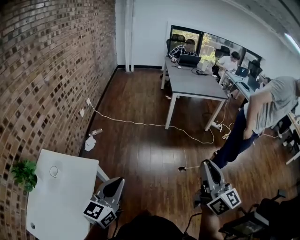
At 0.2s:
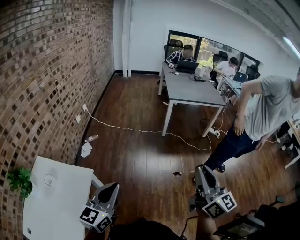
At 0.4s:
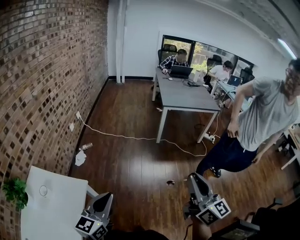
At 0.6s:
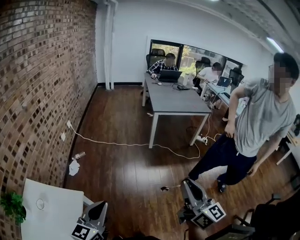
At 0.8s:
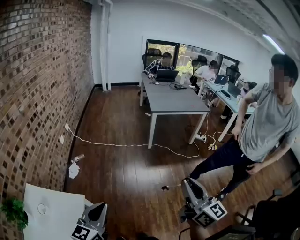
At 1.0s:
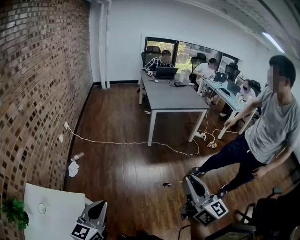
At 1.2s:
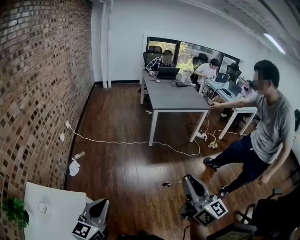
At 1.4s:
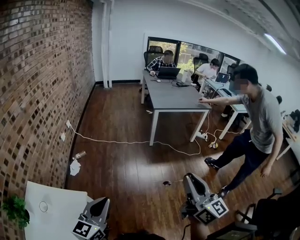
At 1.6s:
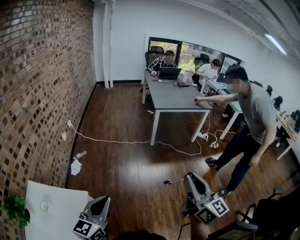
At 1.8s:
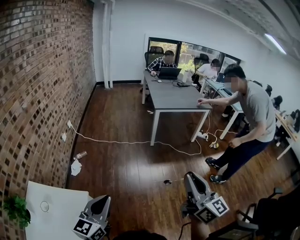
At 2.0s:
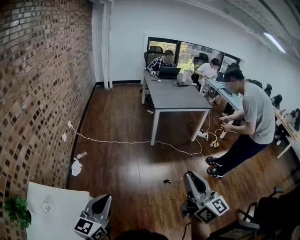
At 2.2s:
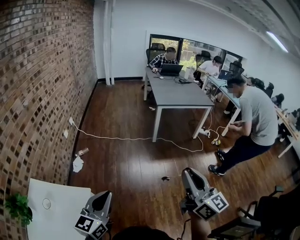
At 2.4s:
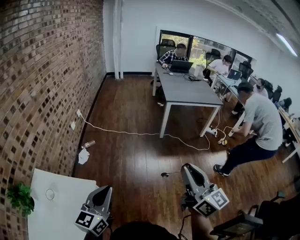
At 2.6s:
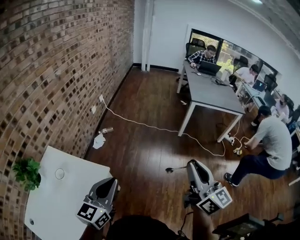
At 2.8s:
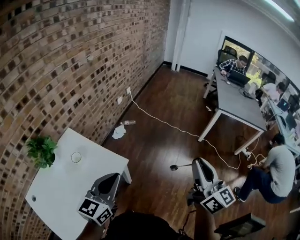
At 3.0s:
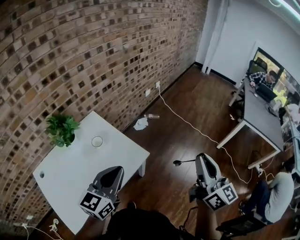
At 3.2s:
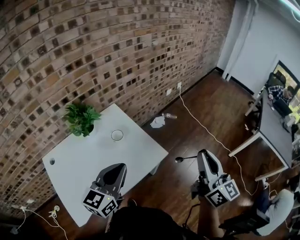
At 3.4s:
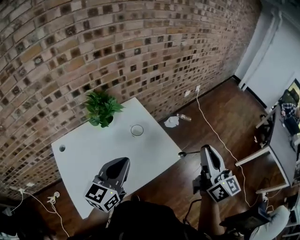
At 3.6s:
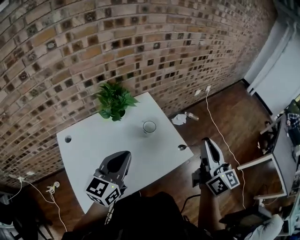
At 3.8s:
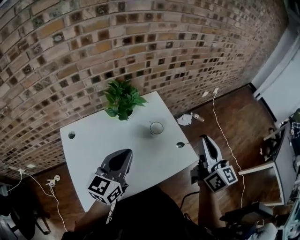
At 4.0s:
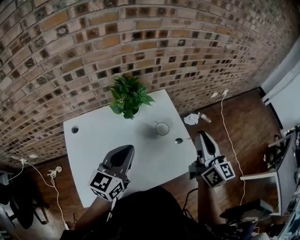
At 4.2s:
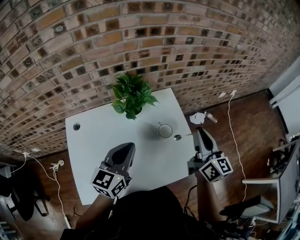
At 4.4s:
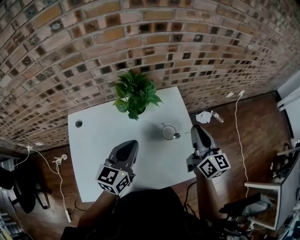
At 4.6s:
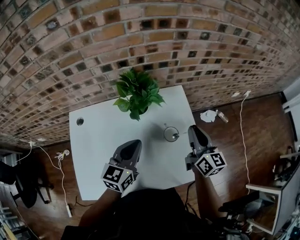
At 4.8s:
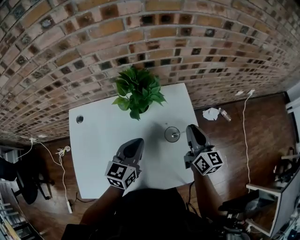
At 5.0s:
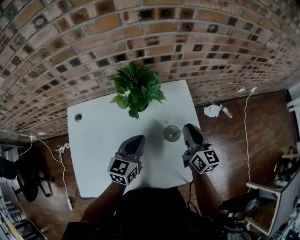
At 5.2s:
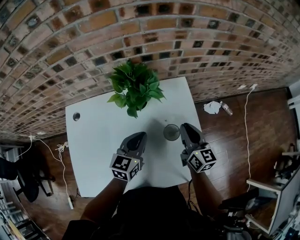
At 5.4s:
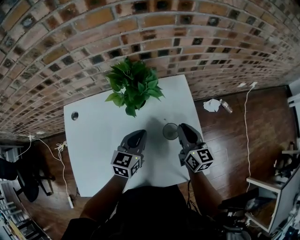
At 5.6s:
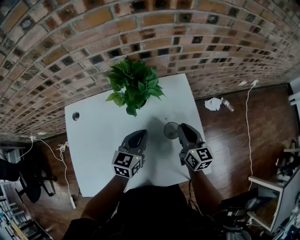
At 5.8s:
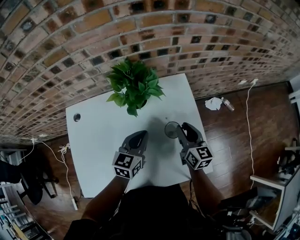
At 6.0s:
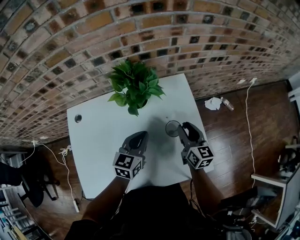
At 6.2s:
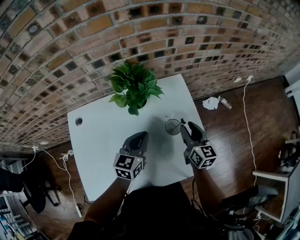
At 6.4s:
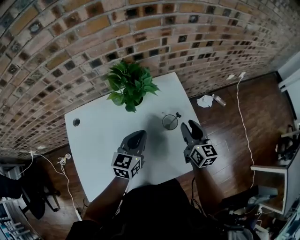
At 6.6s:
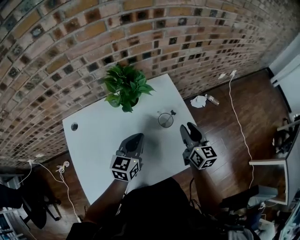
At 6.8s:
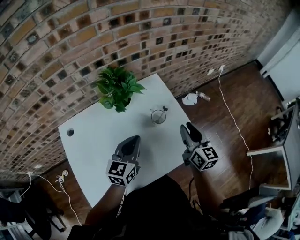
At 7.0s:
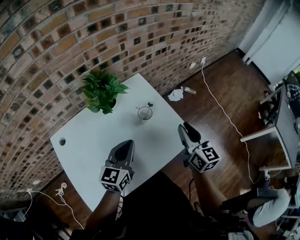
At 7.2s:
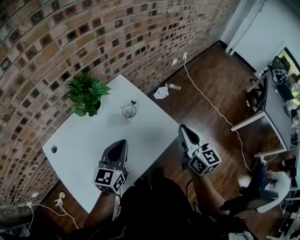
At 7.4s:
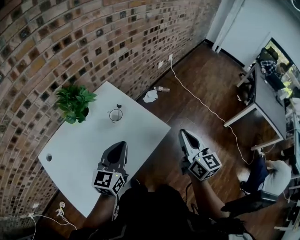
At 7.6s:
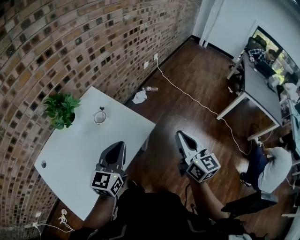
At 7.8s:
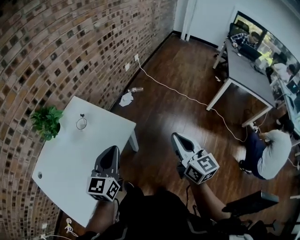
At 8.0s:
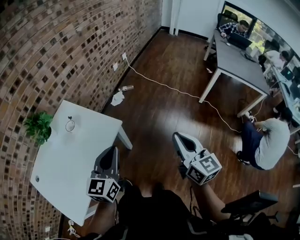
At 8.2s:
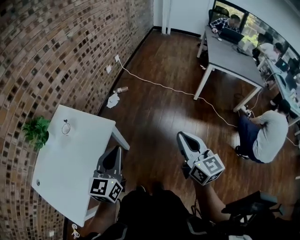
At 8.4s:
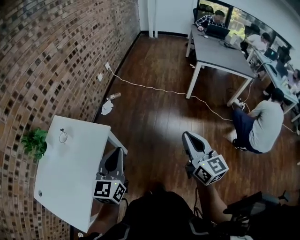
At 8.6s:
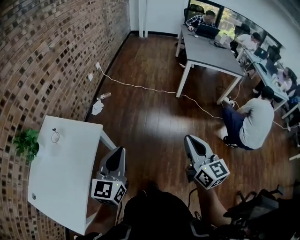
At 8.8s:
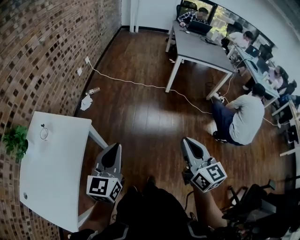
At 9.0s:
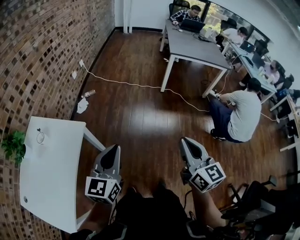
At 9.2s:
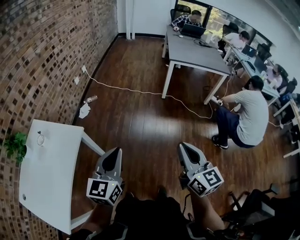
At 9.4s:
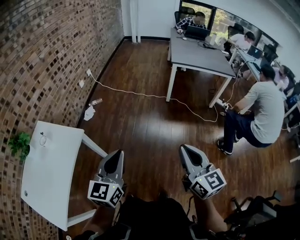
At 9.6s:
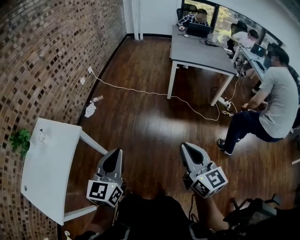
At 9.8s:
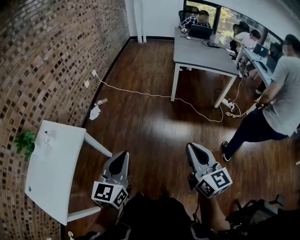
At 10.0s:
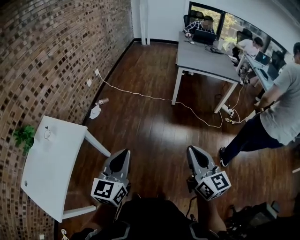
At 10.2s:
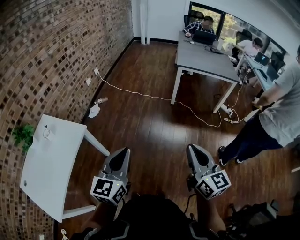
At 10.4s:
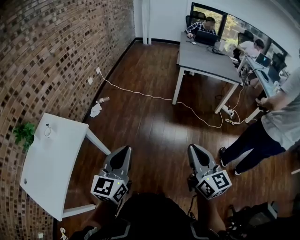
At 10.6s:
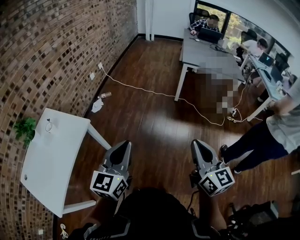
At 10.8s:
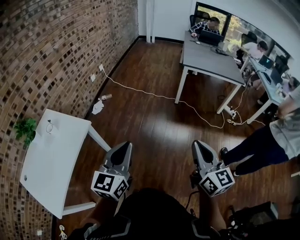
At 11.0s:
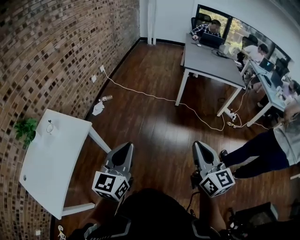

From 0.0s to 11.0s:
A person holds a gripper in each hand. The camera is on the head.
From 0.0s to 1.6s: The grippers both shift forward by approximately 10 cm.
From 1.6s to 3.2s: The left gripper shifts by roughly 30 cm, and rotates about 50 degrees. The right gripper shifts by roughly 35 cm, and swivels about 50 degrees.
From 3.2s to 4.8s: The right gripper ends up roughly 50 cm from where it was, and changes its angle by roughly 40 degrees. Meanwhile the left gripper ends up about 30 cm from where it was, and changes its angle by roughly 30 degrees.
From 4.8s to 6.2s: The right gripper goes about 5 cm downward, and opens.
From 6.2s to 7.8s: The left gripper moves about 35 cm, and changes its angle by approximately 40 degrees. Meanwhile the right gripper shifts by some 50 cm, rotates approximately 40 degrees, and closes its fingers.
From 7.8s to 9.4s: The right gripper changes place by some 40 cm, and rotates about 20 degrees. The left gripper ends up about 35 cm from where it was, and turns by about 20 degrees.
From 9.4s to 11.0s: The grippers stay close to where they were, moving slightly.

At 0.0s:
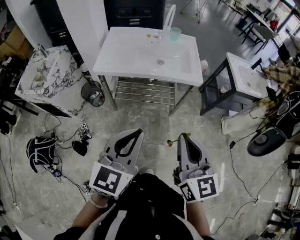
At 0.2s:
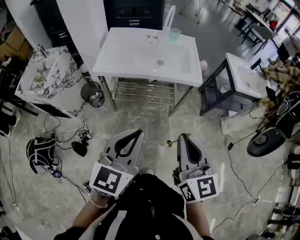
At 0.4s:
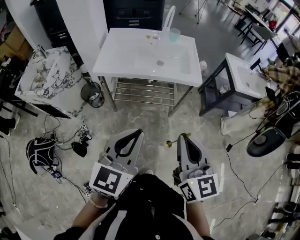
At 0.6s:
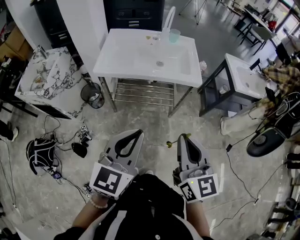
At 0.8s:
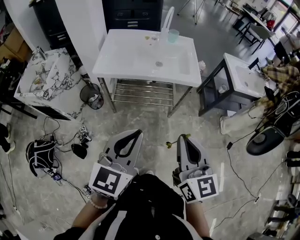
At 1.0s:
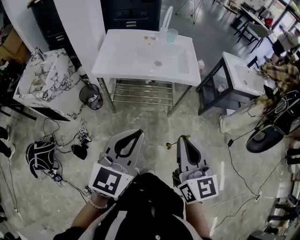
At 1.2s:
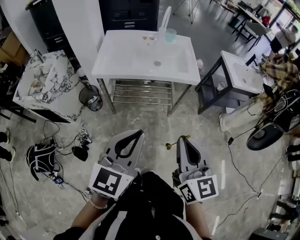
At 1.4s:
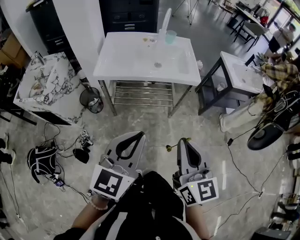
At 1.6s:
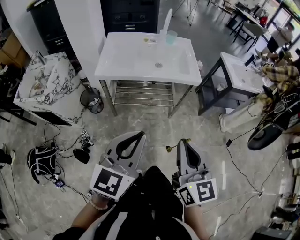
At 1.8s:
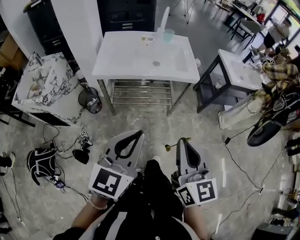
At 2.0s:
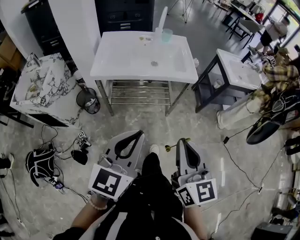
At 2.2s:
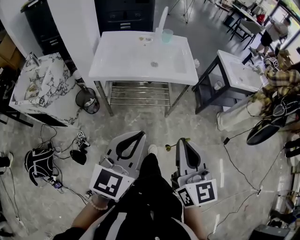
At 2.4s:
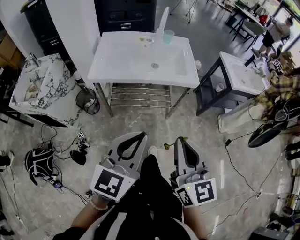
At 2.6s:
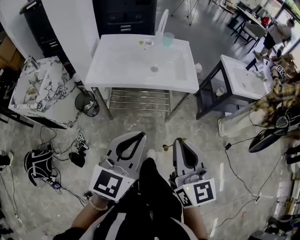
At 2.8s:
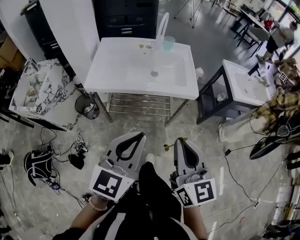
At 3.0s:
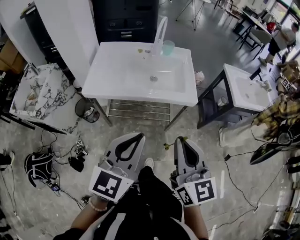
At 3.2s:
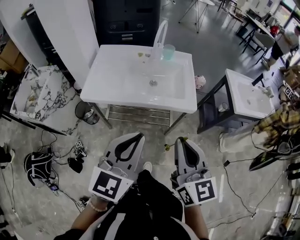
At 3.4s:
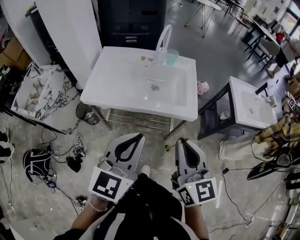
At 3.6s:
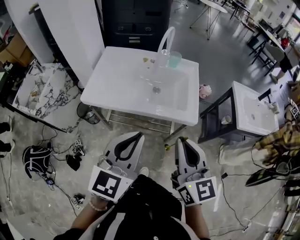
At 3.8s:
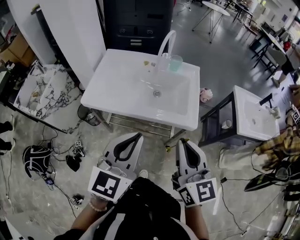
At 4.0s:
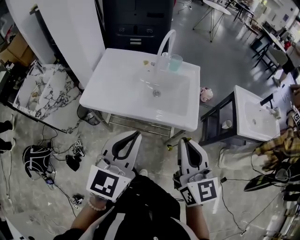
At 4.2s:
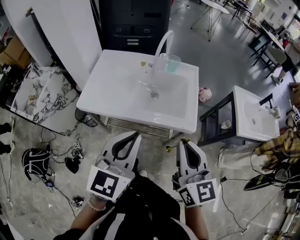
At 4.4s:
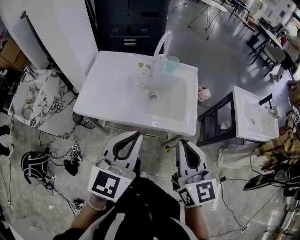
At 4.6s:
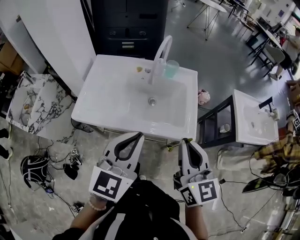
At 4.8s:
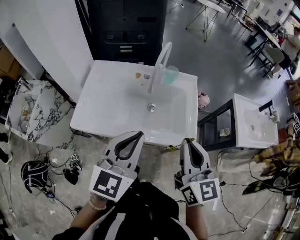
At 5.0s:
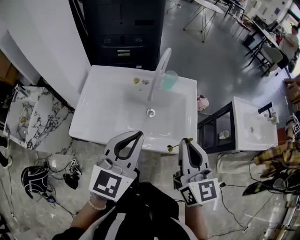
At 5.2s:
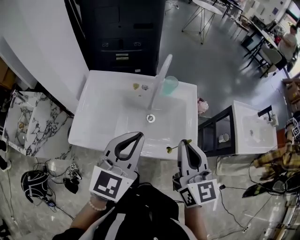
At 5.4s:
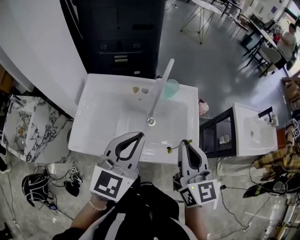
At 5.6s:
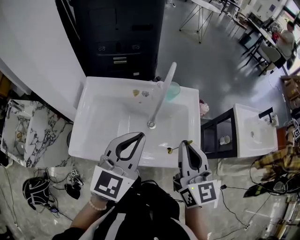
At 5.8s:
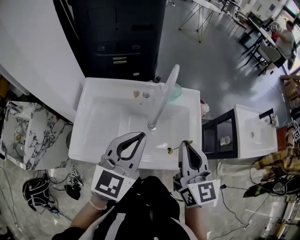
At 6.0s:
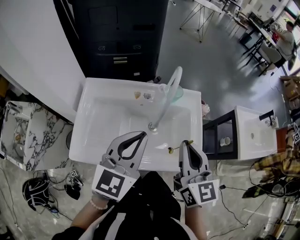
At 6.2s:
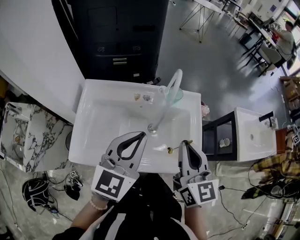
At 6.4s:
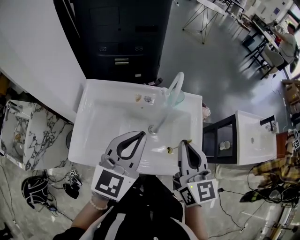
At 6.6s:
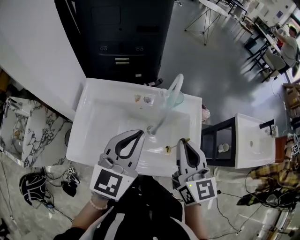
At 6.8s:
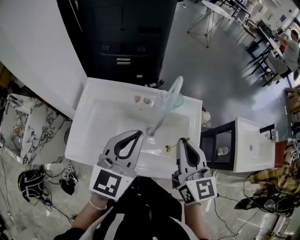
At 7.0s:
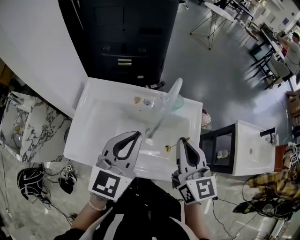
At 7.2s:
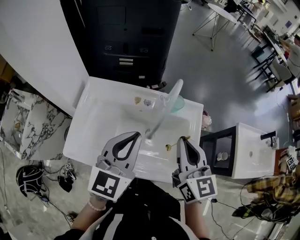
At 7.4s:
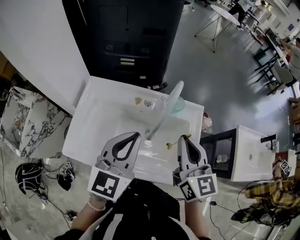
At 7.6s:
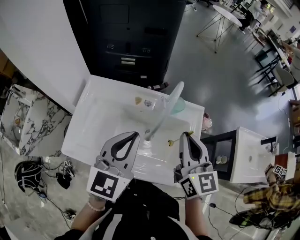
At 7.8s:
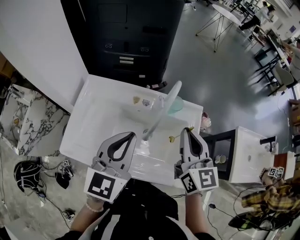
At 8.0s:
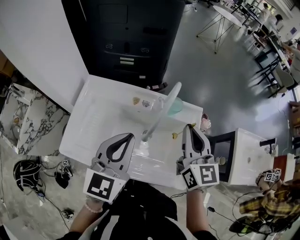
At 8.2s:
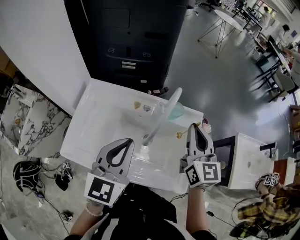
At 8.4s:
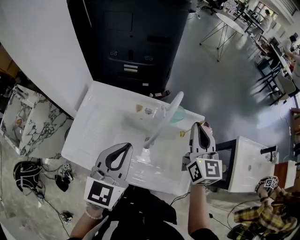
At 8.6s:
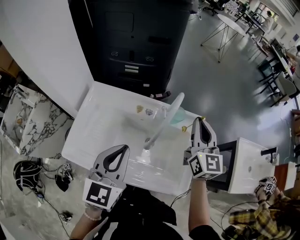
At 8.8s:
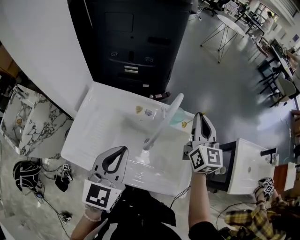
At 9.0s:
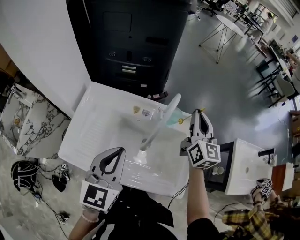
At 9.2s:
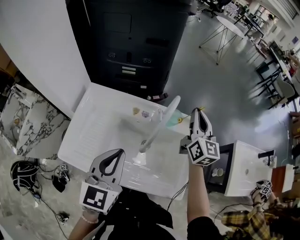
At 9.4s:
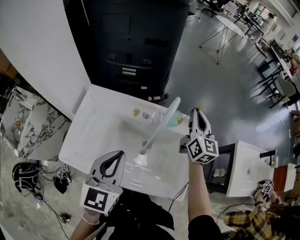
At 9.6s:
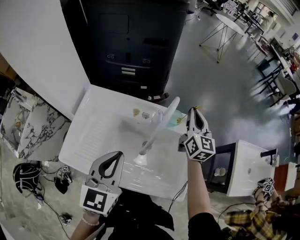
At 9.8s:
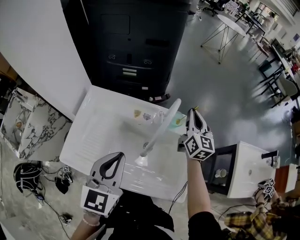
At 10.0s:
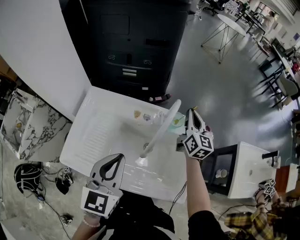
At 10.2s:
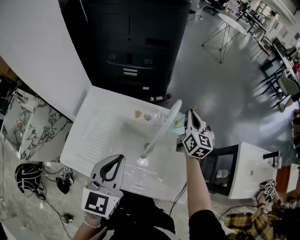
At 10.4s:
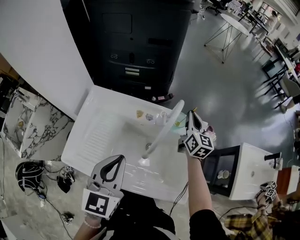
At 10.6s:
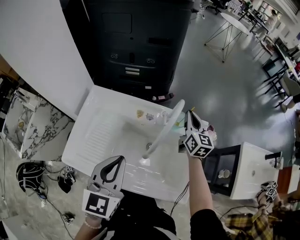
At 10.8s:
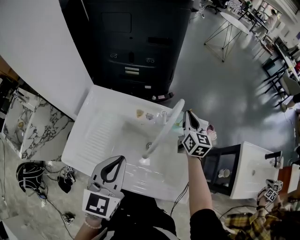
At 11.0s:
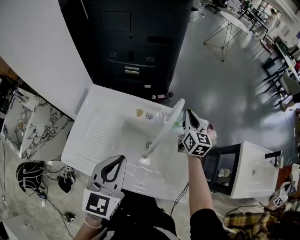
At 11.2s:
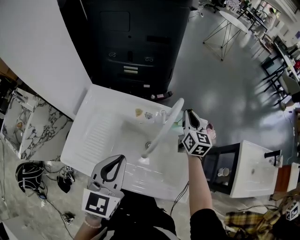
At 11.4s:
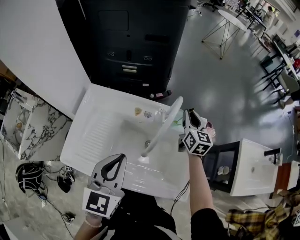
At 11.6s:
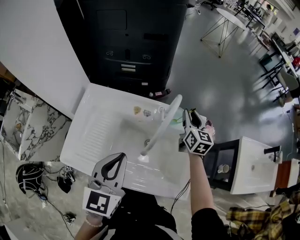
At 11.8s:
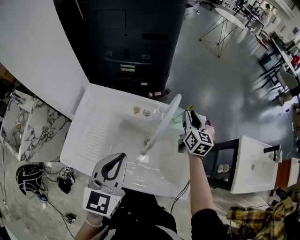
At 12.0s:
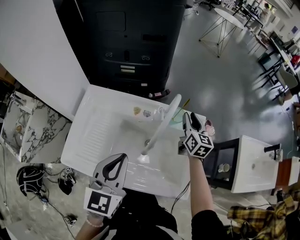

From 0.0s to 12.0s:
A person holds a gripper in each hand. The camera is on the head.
From 0.0s to 1.6s: The right gripper ends up roughly 5 cm from where it was.
From 1.6s to 3.0s: The right gripper goes some 15 cm forward. The left gripper heads forward and to the right, covering about 15 cm.
From 3.0s to 4.4s: Both grippers travel together forward, about 15 cm.
From 4.4s to 6.0s: The two grippers go about 20 cm forward.
From 6.0s to 7.6s: The right gripper moves forward, some 10 cm.
From 7.6s to 9.0s: The right gripper shifts about 15 cm forward and to the right.
From 9.0s to 10.4s: The right gripper moves downward and forward, roughly 15 cm.
From 10.4s to 12.0s: The right gripper opens up.

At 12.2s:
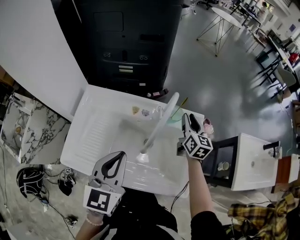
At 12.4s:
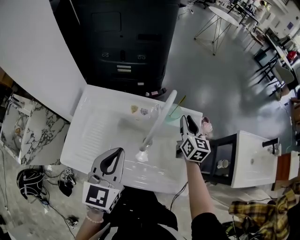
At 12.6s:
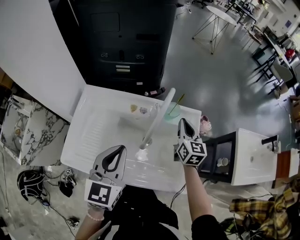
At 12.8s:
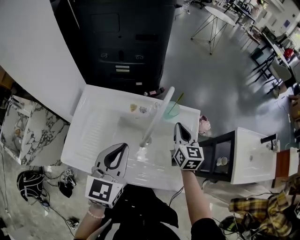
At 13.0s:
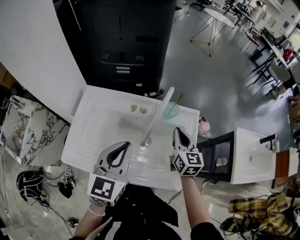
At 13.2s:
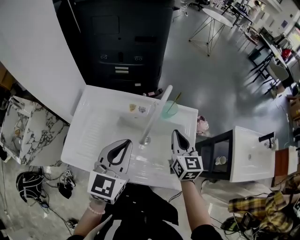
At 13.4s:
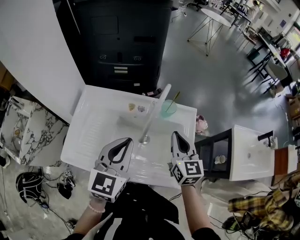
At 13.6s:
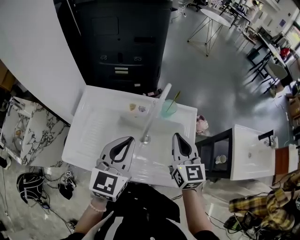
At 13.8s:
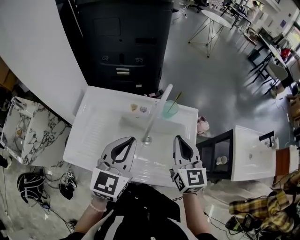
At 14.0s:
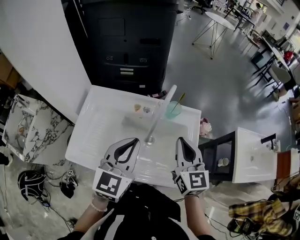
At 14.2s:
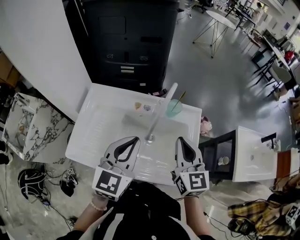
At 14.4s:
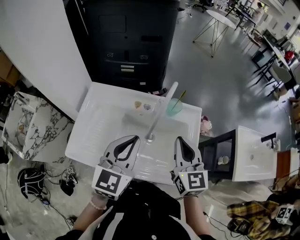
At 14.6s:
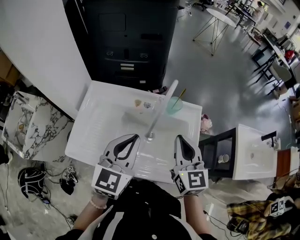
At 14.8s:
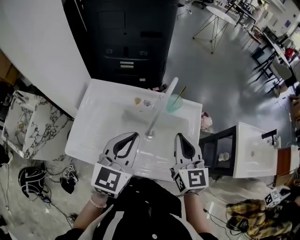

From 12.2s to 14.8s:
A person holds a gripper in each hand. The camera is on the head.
From 12.2s to 13.4s: The right gripper goes approximately 15 cm backward and upward, and closes its fingers.
From 13.4s to 14.8s: The right gripper shifts by about 5 cm.
